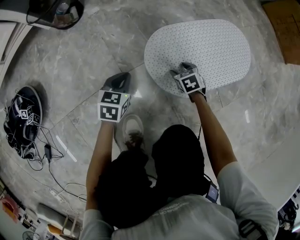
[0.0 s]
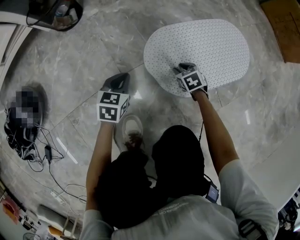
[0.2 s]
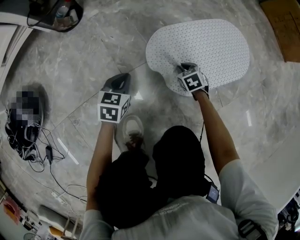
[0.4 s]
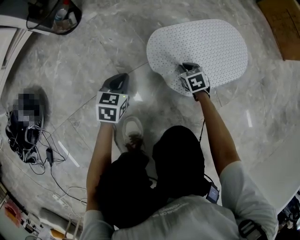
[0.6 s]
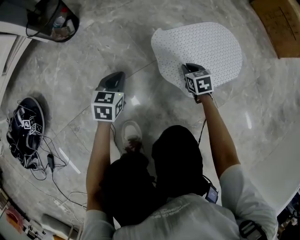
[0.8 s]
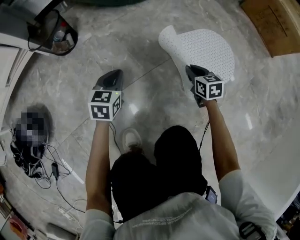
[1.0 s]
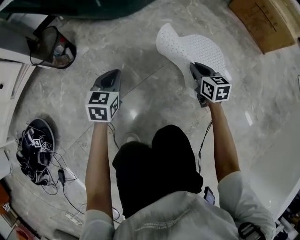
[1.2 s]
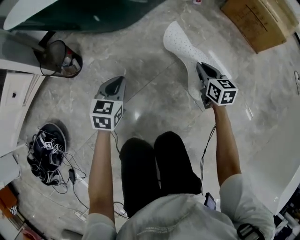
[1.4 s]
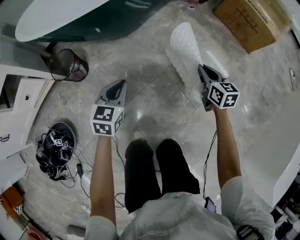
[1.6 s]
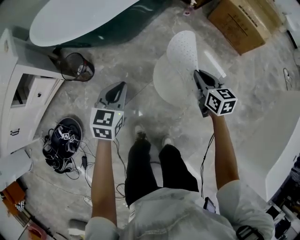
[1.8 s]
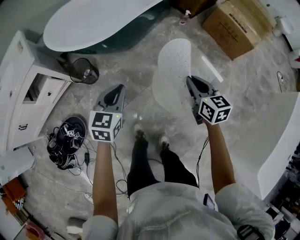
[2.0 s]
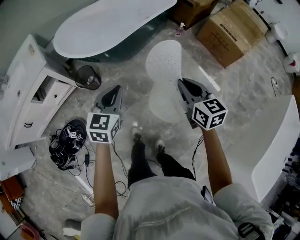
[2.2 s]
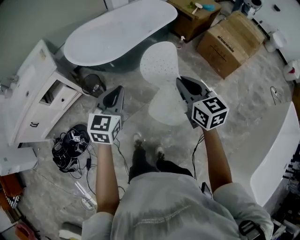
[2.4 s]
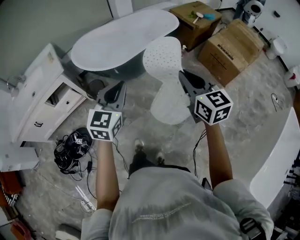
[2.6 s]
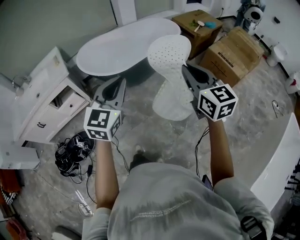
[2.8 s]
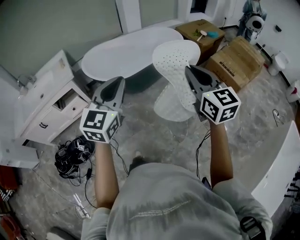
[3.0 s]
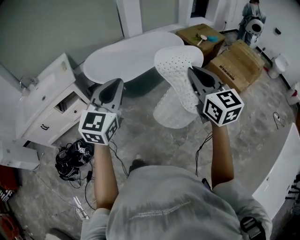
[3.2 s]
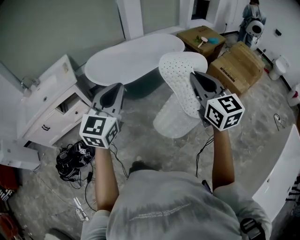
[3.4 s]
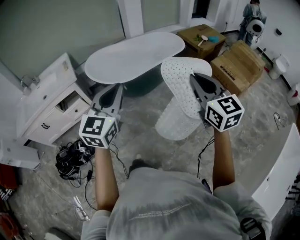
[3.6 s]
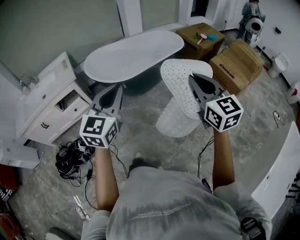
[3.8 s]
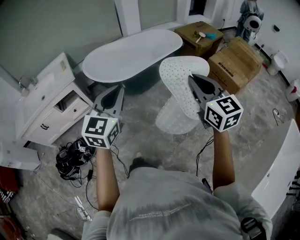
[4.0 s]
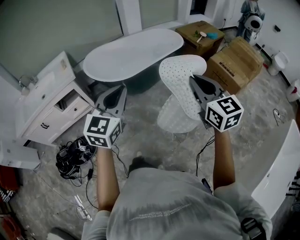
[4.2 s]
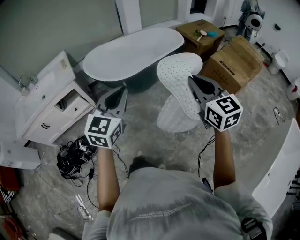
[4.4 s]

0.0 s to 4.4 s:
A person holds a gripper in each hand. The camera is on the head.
0.0 to 1.4 s: The right gripper travels upward and to the right by about 40 cm, tilts its fingers approximately 30 degrees upward, and closes up; the left gripper shifts approximately 25 cm upward.
1.4 to 3.0 s: The two grippers go approximately 80 cm upward. The left gripper swivels roughly 30 degrees; the right gripper swivels about 30 degrees.
3.0 to 4.4 s: The grippers move only a little.

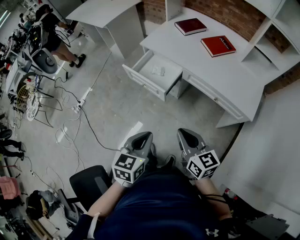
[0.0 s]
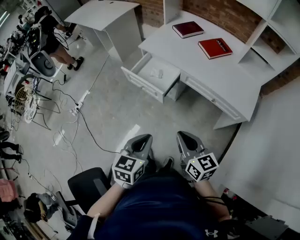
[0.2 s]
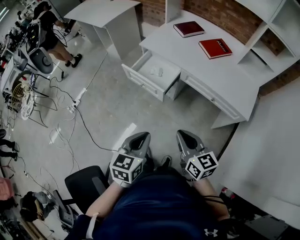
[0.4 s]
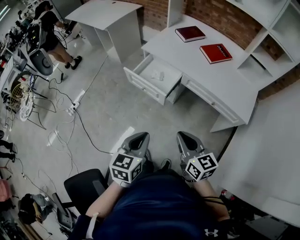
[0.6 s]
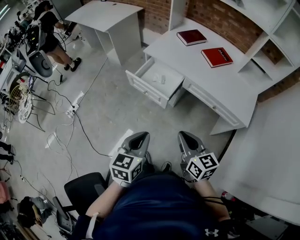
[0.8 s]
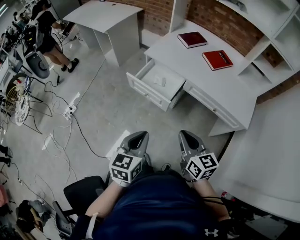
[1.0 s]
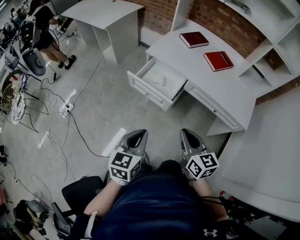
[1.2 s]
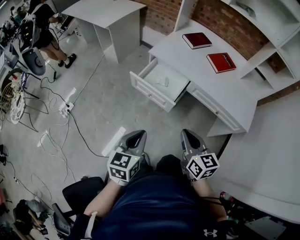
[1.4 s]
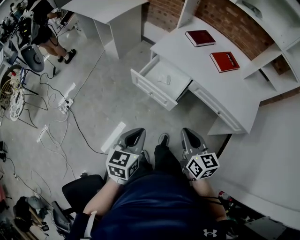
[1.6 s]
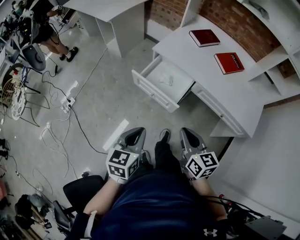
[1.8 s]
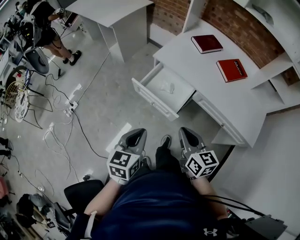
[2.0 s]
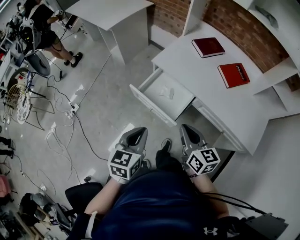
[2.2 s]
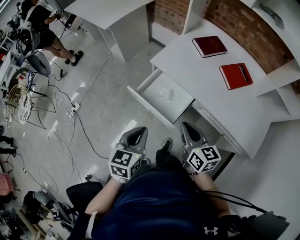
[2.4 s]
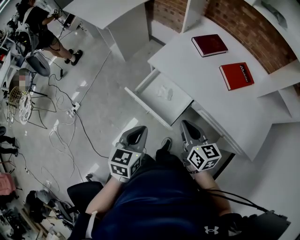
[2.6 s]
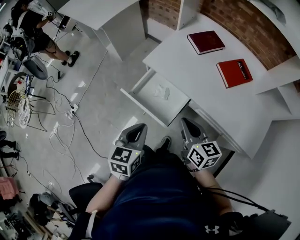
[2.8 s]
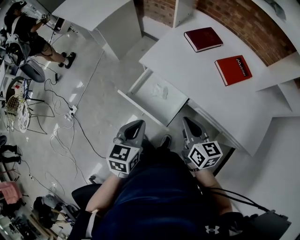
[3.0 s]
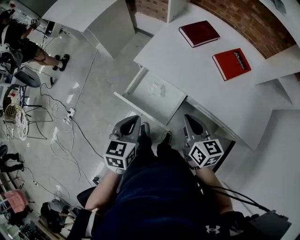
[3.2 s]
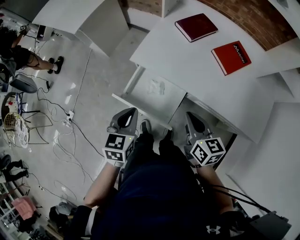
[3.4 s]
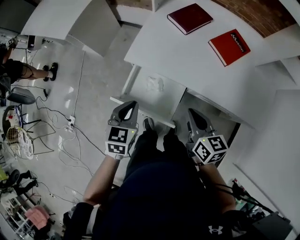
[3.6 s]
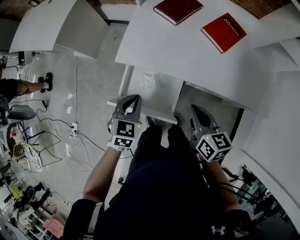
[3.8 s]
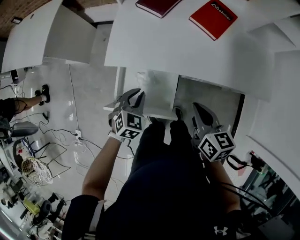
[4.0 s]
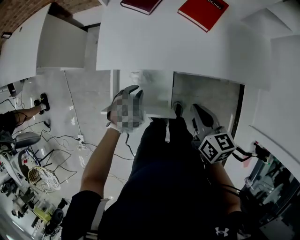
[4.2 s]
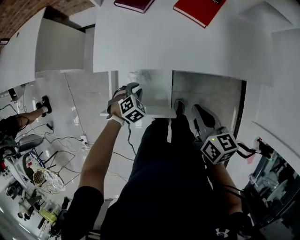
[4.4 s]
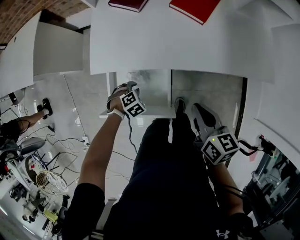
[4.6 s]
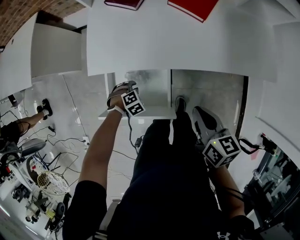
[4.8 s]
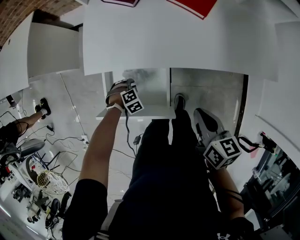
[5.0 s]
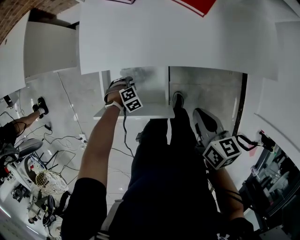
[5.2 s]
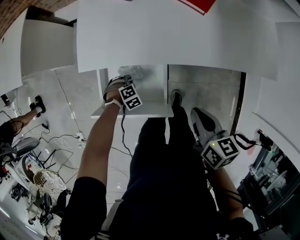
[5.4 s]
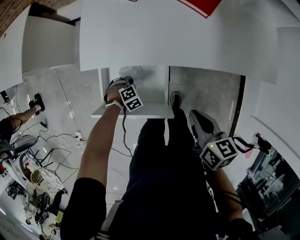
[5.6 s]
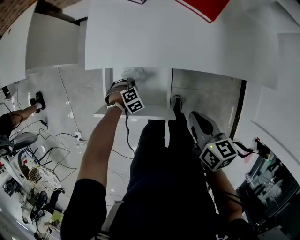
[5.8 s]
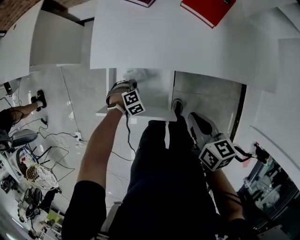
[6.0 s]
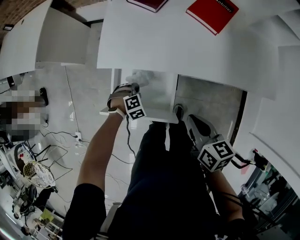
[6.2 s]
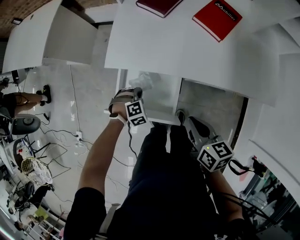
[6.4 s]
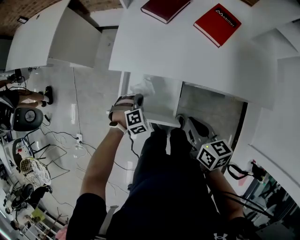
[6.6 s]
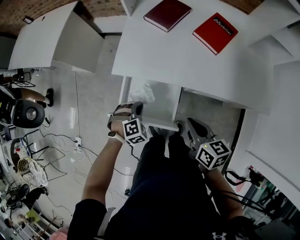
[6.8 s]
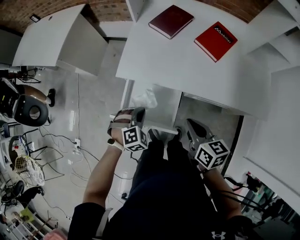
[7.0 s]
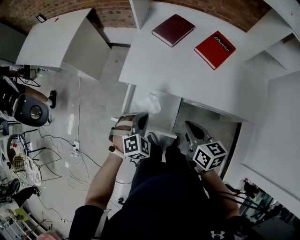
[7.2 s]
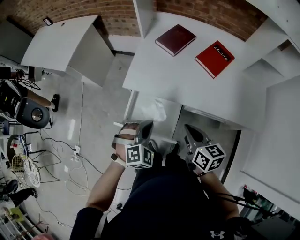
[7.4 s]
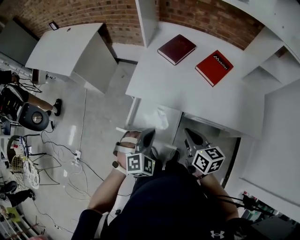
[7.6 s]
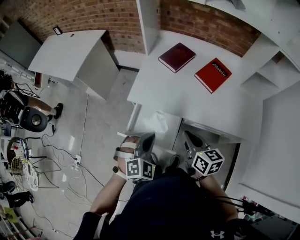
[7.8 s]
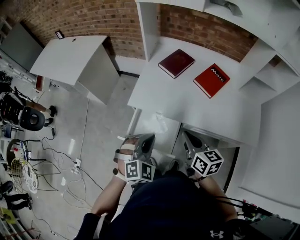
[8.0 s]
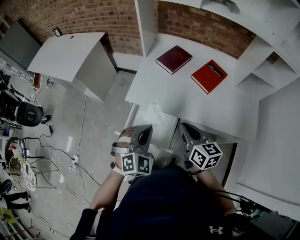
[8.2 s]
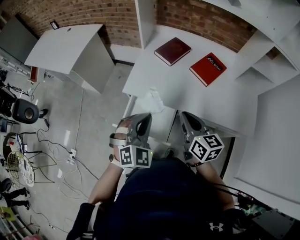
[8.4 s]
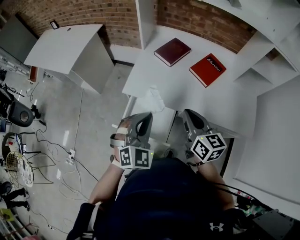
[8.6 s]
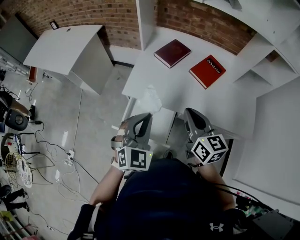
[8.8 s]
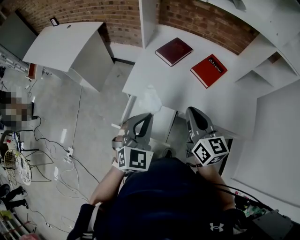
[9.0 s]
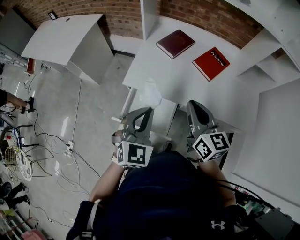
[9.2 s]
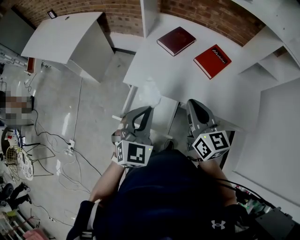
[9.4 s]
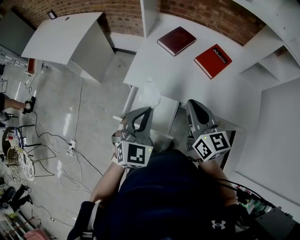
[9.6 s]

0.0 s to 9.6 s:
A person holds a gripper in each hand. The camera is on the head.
0.0 to 1.6 s: Both grippers travel together to the left and forward, some 15 cm.
1.6 to 3.2 s: Both grippers move forward, roughly 25 cm.
3.2 to 4.8 s: The right gripper shifts about 10 cm downward, and swivels roughly 40 degrees, while the left gripper shifts about 40 cm downward, twists some 80 degrees clockwise, seen from behind, and opens up.
4.8 to 6.4 s: The left gripper goes about 5 cm upward, and closes its fingers. Meanwhile the right gripper ends up approximately 5 cm from where it was.
6.4 to 8.0 s: The left gripper travels upward by roughly 35 cm, and angles its fingers upward, by roughly 40 degrees, while the right gripper goes approximately 15 cm upward.
8.0 to 9.6 s: Both grippers move upward, approximately 5 cm. The left gripper rotates approximately 30 degrees.

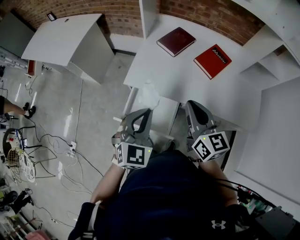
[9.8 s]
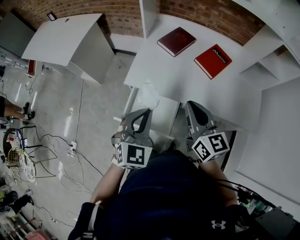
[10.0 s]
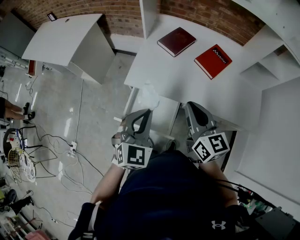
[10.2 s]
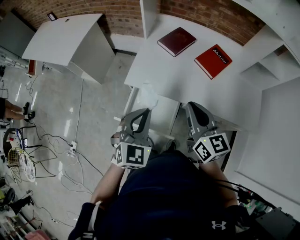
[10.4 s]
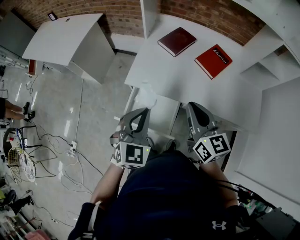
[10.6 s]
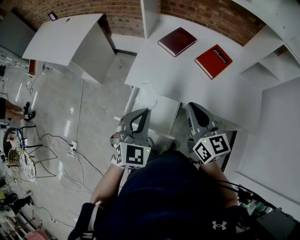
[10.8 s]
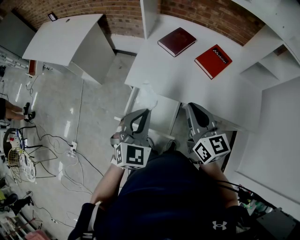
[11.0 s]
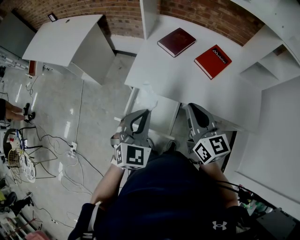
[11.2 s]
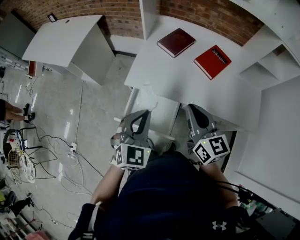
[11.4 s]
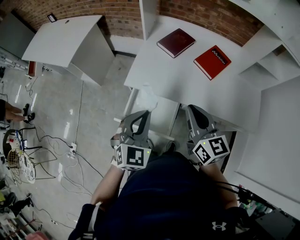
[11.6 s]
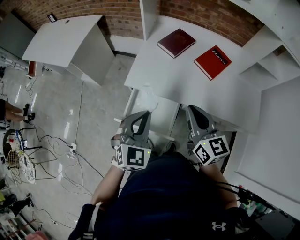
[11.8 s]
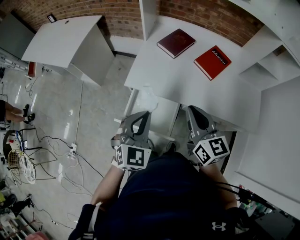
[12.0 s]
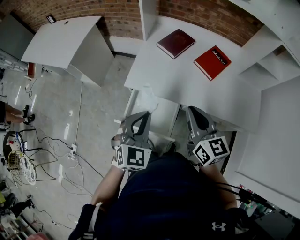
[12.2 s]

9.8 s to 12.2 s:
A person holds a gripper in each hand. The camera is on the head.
9.8 to 12.2 s: Both grippers stay about where they are.

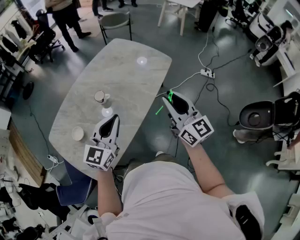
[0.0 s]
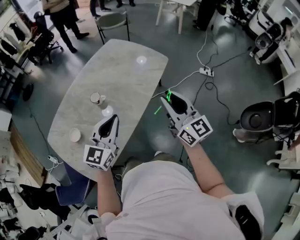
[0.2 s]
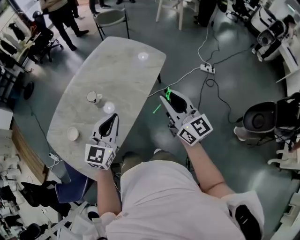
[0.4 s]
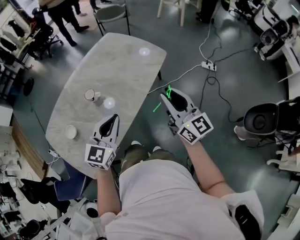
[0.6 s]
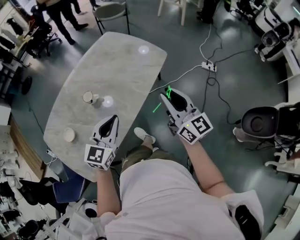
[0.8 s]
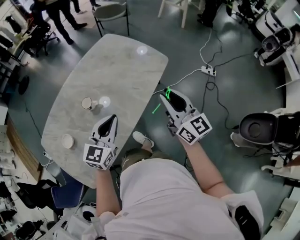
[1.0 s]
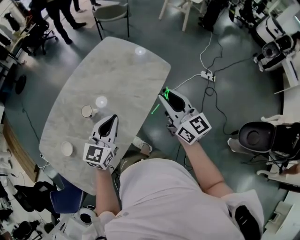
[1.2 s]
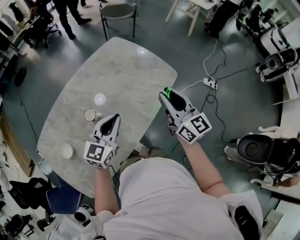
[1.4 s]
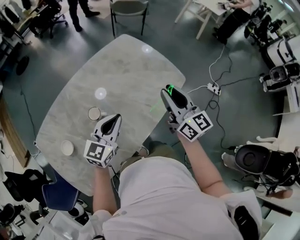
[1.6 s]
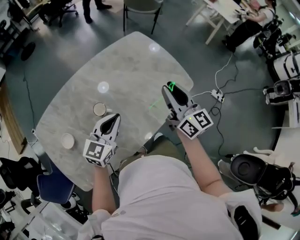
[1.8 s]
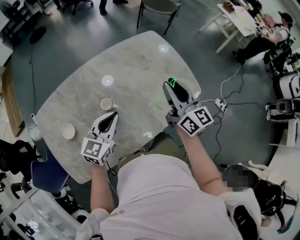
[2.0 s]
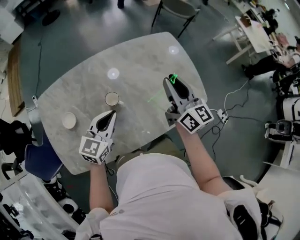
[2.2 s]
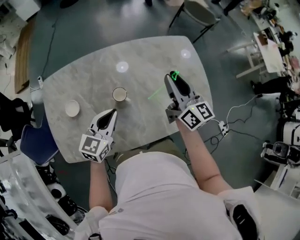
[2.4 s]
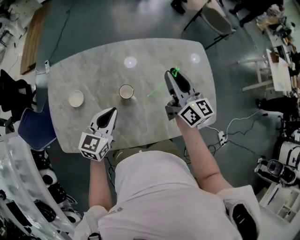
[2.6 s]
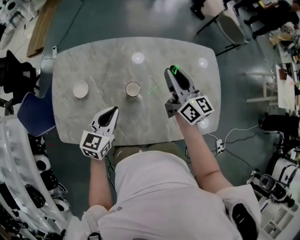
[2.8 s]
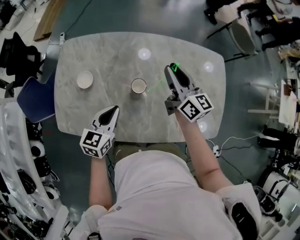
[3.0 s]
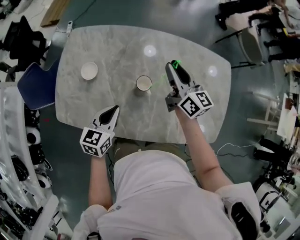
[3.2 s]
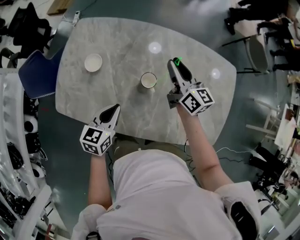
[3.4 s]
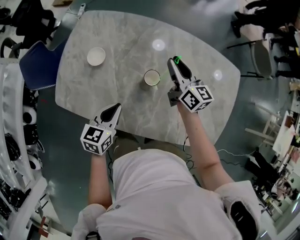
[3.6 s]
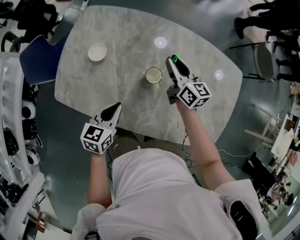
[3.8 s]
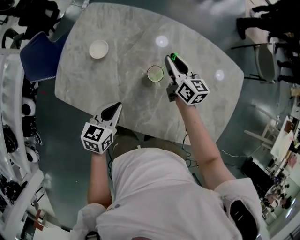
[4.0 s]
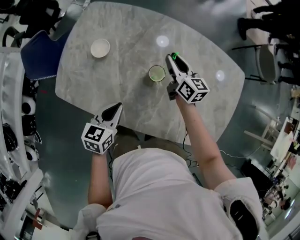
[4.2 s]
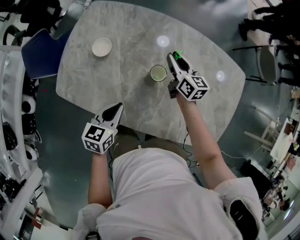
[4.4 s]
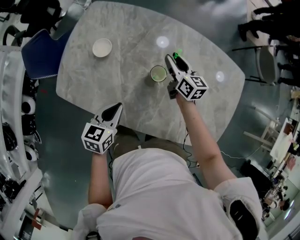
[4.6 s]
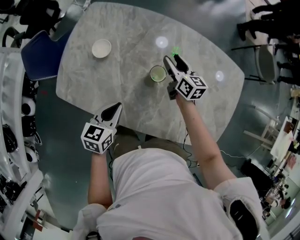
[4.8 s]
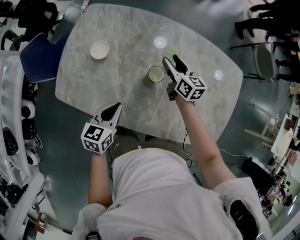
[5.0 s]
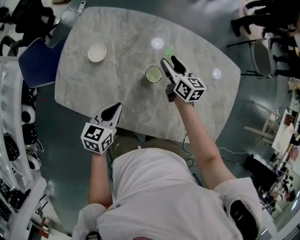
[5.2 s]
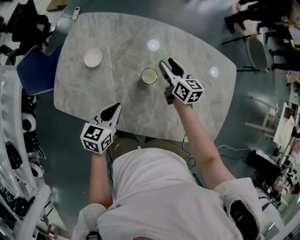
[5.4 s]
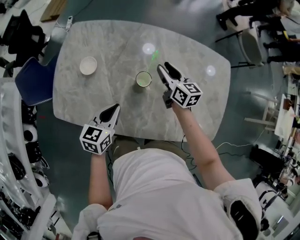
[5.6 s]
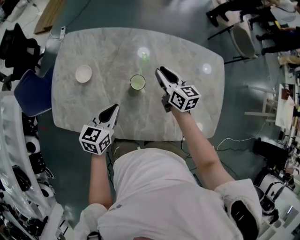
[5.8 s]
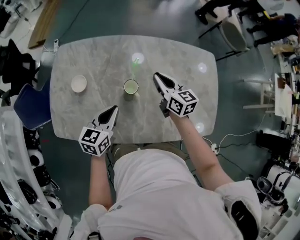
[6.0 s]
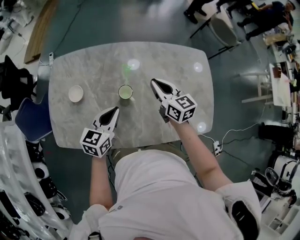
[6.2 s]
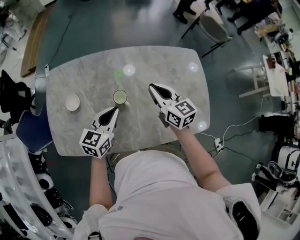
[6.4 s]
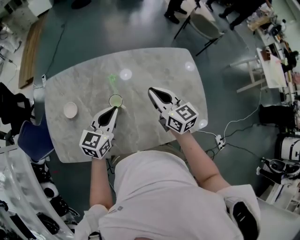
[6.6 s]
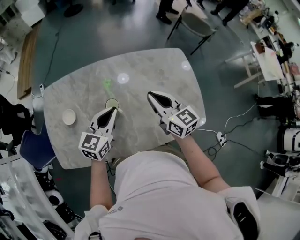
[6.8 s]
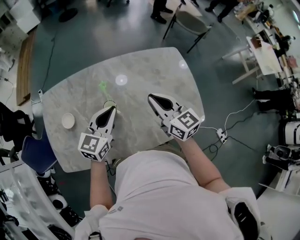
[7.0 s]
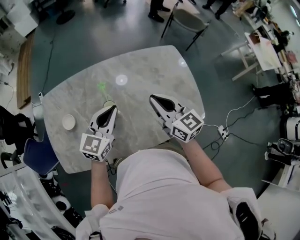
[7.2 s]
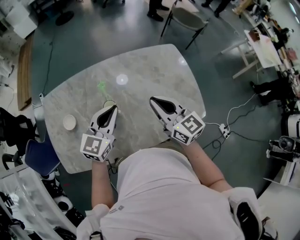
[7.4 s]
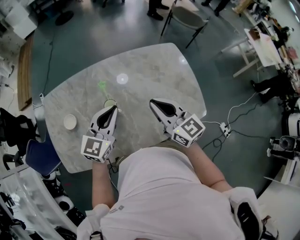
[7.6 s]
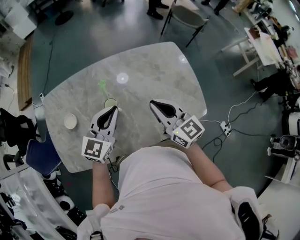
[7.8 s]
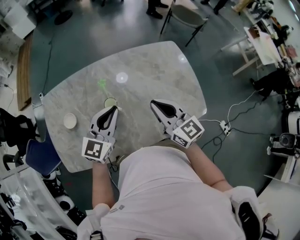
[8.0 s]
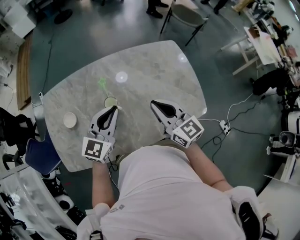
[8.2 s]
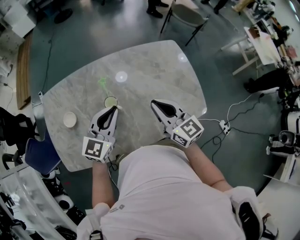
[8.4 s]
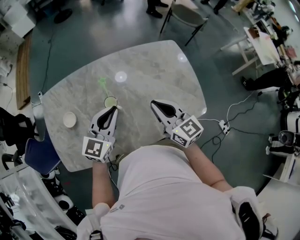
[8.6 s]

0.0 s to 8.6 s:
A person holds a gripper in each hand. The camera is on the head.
0.0 to 1.4 s: The left gripper goes roughly 20 cm forward and downward; the right gripper travels forward by some 25 cm.
1.4 to 2.8 s: The right gripper changes place by approximately 35 cm, and changes its angle by some 50 degrees. The left gripper ends up approximately 20 cm from where it was, and turns by about 50 degrees.
2.8 to 4.4 s: The left gripper shifts about 10 cm downward, backward and to the left, and rotates approximately 30 degrees. Meanwhile the right gripper moves downward, to the left and forward, some 20 cm, and changes its angle by some 30 degrees.
4.4 to 5.8 s: The left gripper shifts some 5 cm forward; the right gripper moves backward and to the right, approximately 5 cm, and opens, then closes once more.
5.8 to 7.2 s: The left gripper is displaced to the right and upward by about 20 cm, and swivels roughly 40 degrees. Meanwhile the right gripper goes some 25 cm upward, backward and to the right, and closes.
7.2 to 8.6 s: The grippers stay close to where they were, moving slightly.
